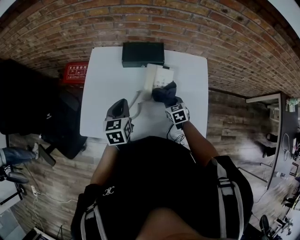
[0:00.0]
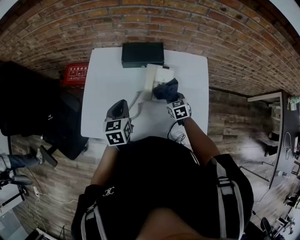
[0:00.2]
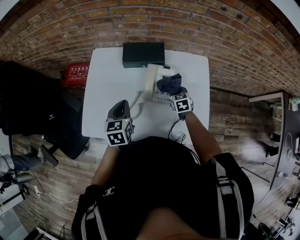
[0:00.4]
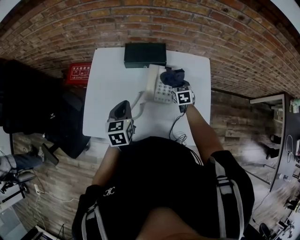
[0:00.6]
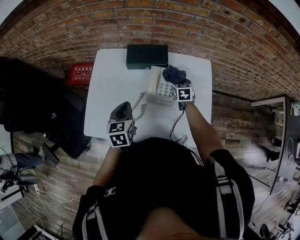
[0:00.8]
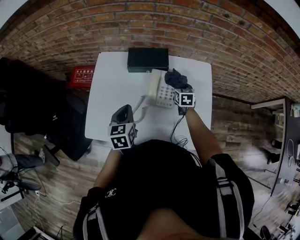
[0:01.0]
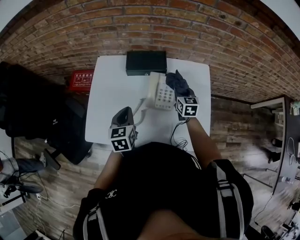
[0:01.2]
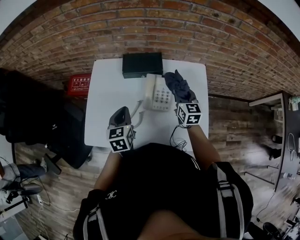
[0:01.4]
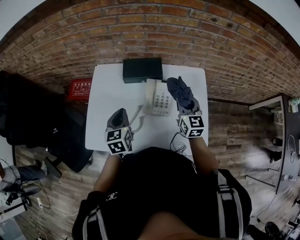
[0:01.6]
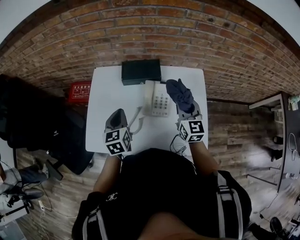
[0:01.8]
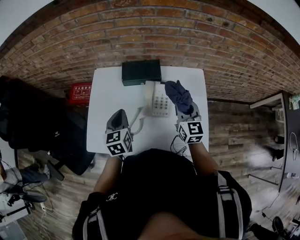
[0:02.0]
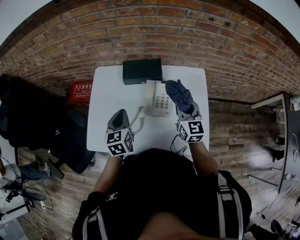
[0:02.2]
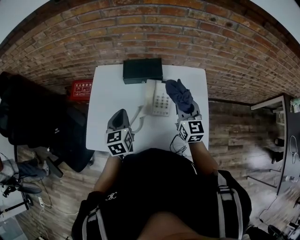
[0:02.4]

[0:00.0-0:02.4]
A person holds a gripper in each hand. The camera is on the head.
0:00.0 to 0:01.2: The right gripper heads upward and forward, covering roughly 15 cm, and turns by approximately 30 degrees.
0:01.2 to 0:02.4: The right gripper is displaced upward and backward by approximately 15 cm.

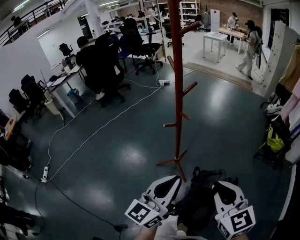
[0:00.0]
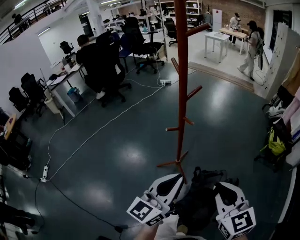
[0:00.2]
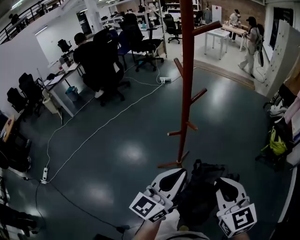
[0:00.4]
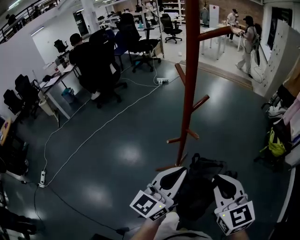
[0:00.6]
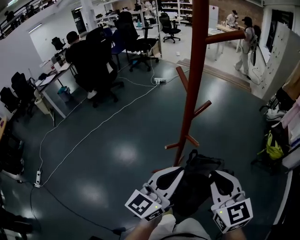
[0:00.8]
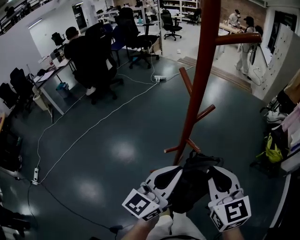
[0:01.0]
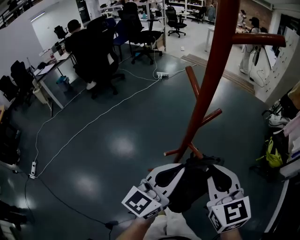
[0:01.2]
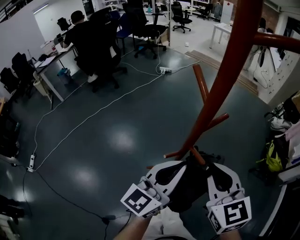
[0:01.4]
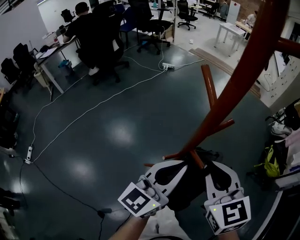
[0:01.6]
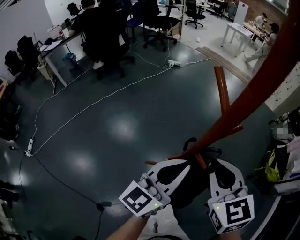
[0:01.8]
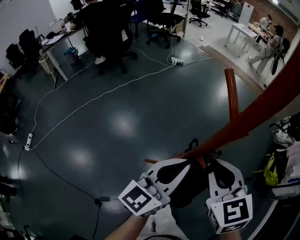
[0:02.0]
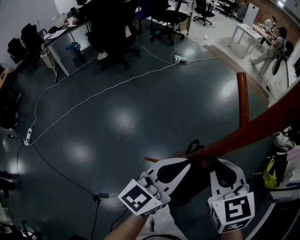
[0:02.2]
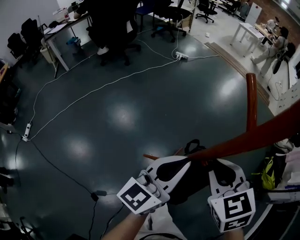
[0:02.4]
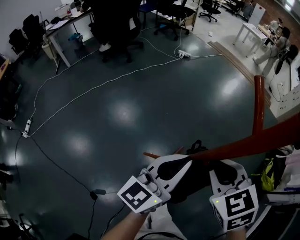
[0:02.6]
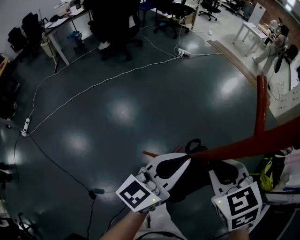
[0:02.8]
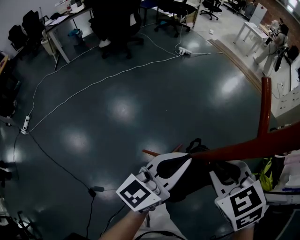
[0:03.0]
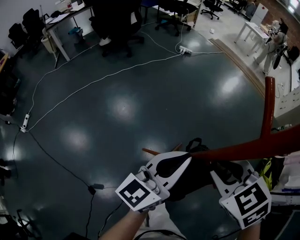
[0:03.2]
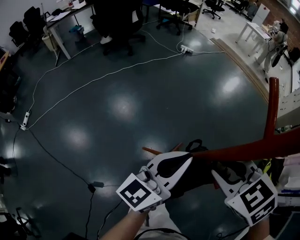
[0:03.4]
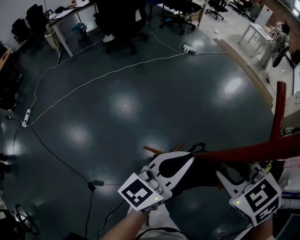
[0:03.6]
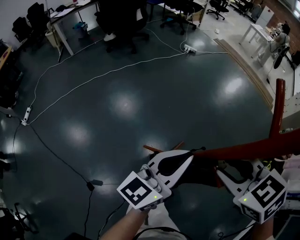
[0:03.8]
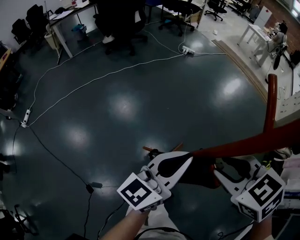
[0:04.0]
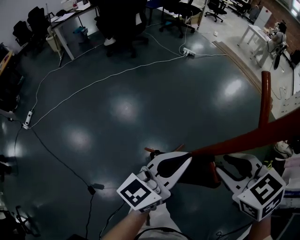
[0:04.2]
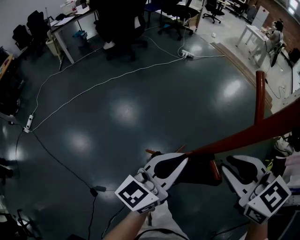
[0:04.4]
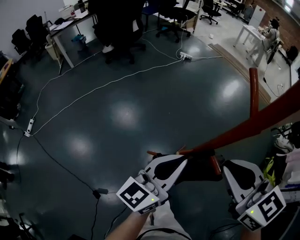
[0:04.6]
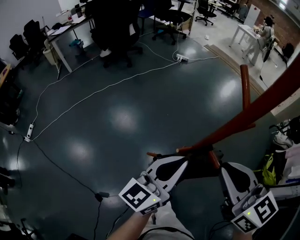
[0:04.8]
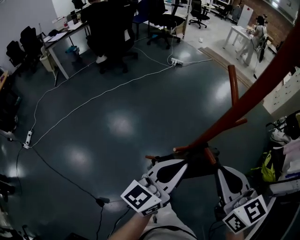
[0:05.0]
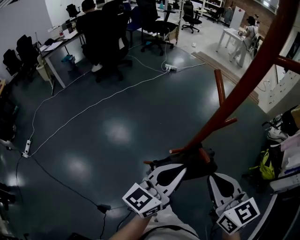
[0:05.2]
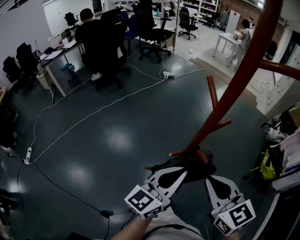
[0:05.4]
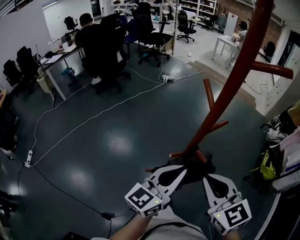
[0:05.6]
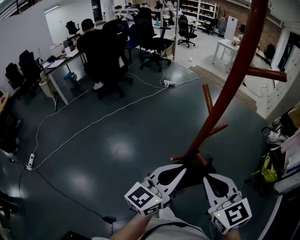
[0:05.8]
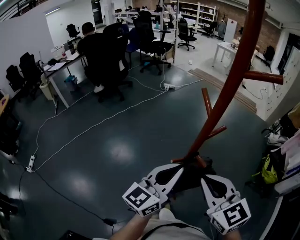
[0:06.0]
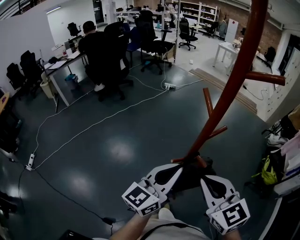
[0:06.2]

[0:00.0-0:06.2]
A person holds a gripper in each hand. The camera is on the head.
0:00.0 to 0:01.6: The left gripper moves forward, some 30 cm. The right gripper is displaced forward and to the left by some 35 cm.
0:01.6 to 0:03.2: The left gripper travels forward by roughly 5 cm. The right gripper is displaced downward by some 5 cm, and tilts its fingers approximately 30 degrees downward.
0:03.2 to 0:04.6: The right gripper heads upward, covering approximately 10 cm, and changes its angle by about 30 degrees.
0:04.6 to 0:06.2: The left gripper goes approximately 10 cm upward and backward, while the right gripper goes approximately 10 cm backward.

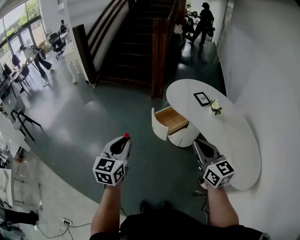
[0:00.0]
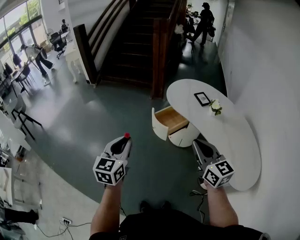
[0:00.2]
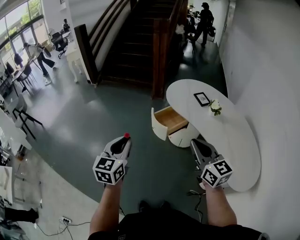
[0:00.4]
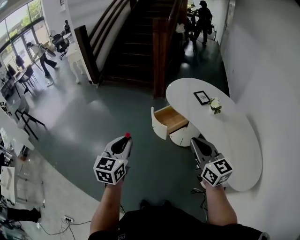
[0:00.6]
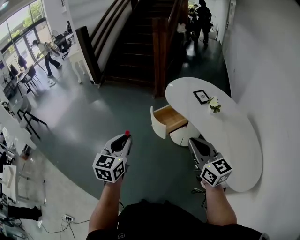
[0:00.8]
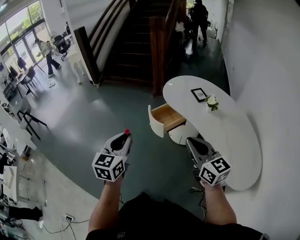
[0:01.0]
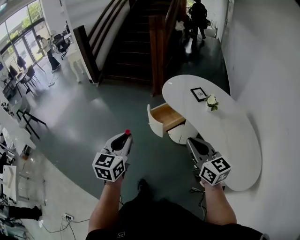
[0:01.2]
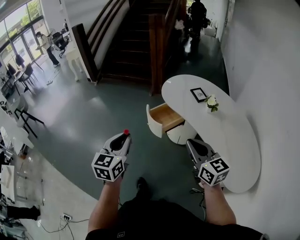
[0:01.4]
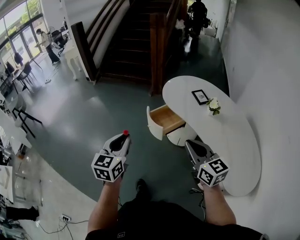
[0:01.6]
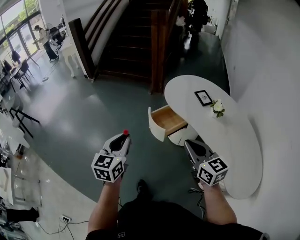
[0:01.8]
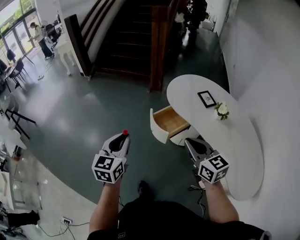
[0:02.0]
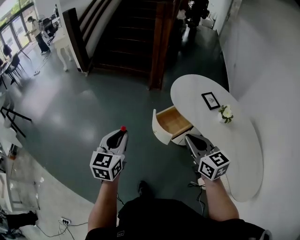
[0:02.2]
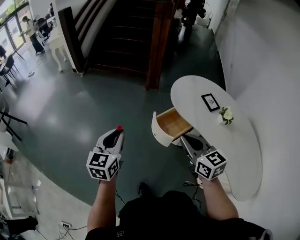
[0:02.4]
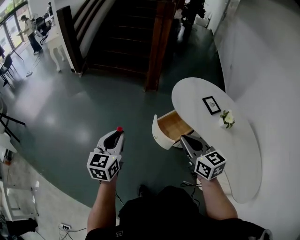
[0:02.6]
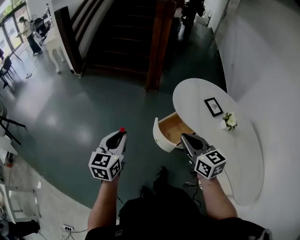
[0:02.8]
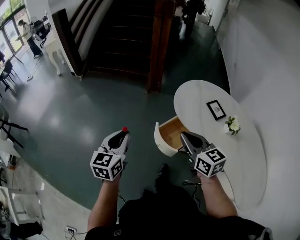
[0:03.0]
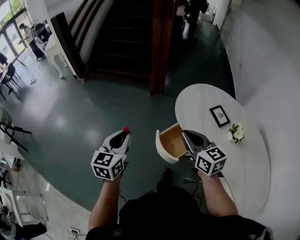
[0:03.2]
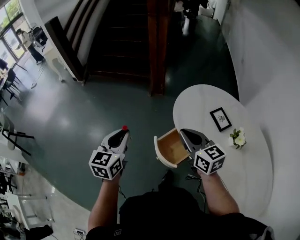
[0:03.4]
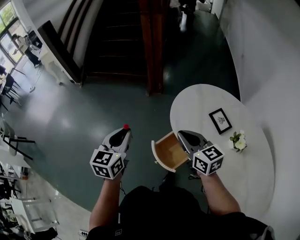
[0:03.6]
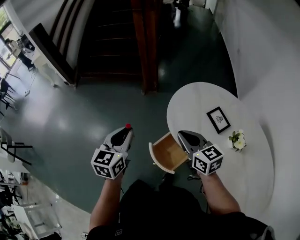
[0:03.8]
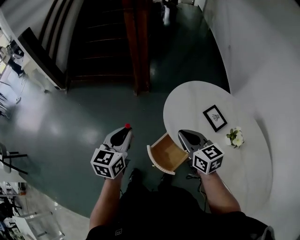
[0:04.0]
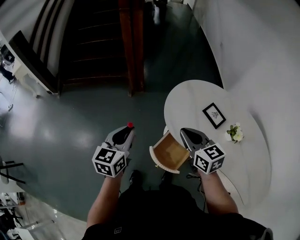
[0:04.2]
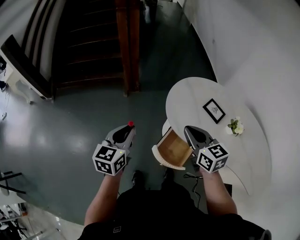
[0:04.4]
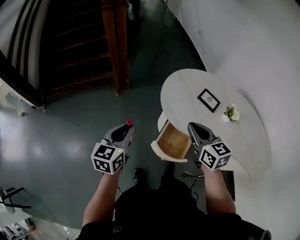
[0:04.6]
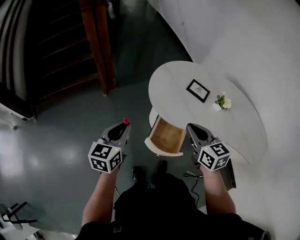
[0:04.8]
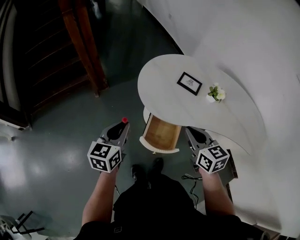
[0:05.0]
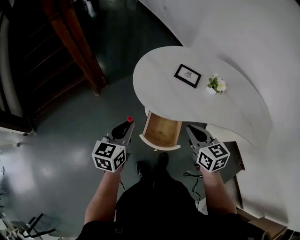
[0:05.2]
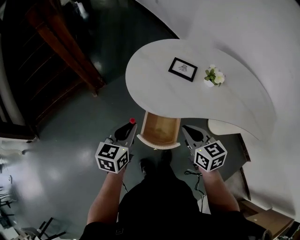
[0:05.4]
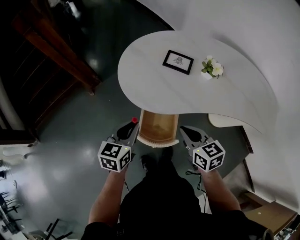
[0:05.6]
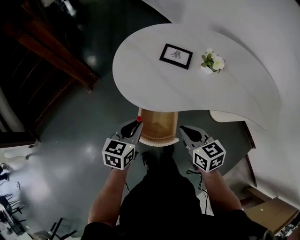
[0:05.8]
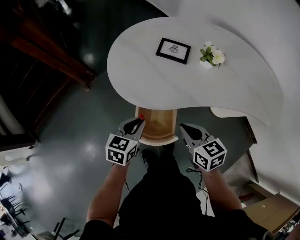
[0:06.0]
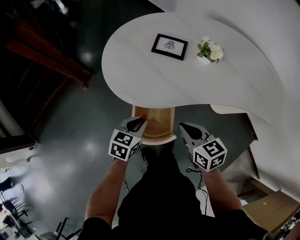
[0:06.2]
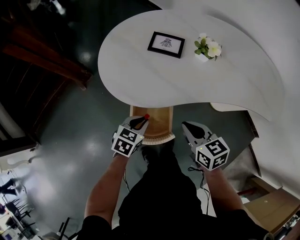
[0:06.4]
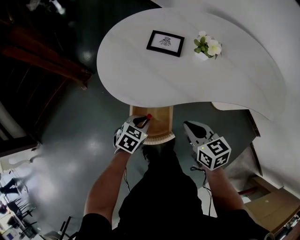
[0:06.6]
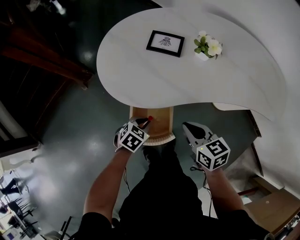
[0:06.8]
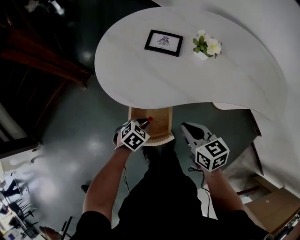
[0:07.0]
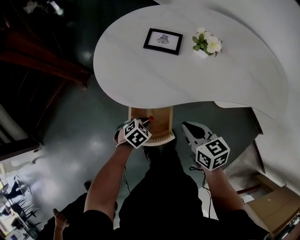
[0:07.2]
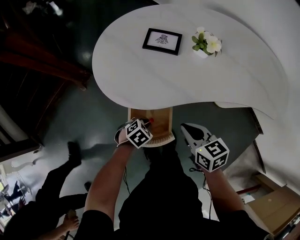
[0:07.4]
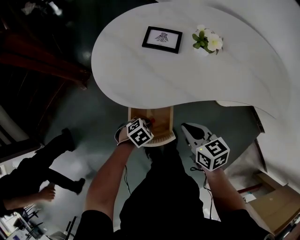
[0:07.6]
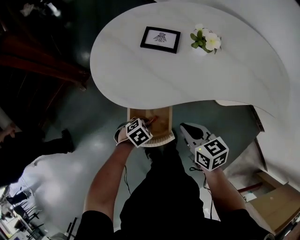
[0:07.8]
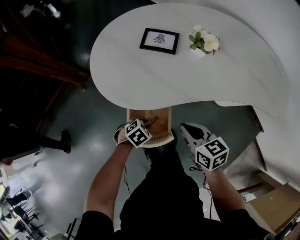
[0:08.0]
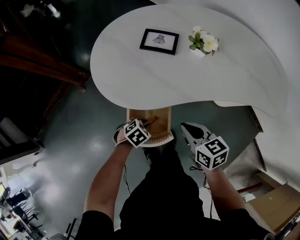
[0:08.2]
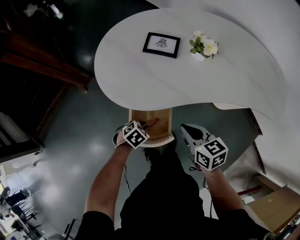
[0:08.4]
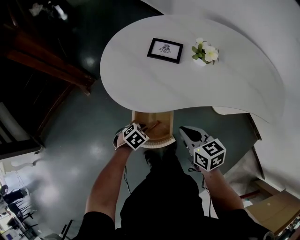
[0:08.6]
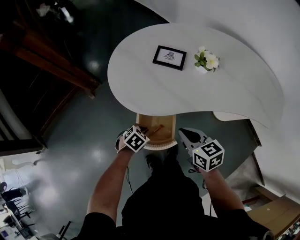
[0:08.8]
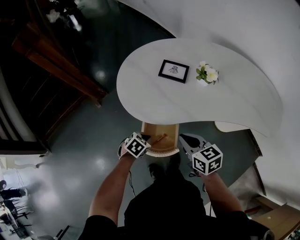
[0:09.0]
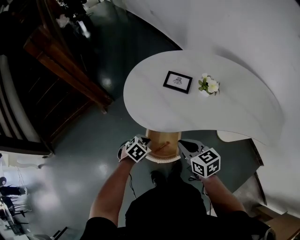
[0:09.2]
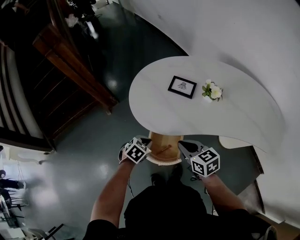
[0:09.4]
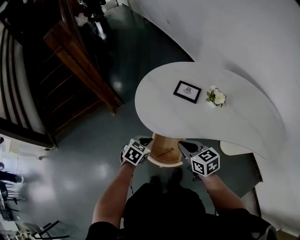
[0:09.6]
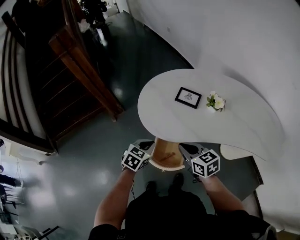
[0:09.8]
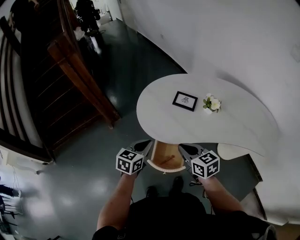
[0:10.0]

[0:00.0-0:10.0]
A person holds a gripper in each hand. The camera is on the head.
0:00.0 to 0:01.4: Both grippers move to the right, some 5 cm.
0:01.4 to 0:02.8: The two grippers go about 30 cm forward and to the left.
0:02.8 to 0:04.2: The left gripper shifts some 30 cm forward and to the right; the right gripper goes approximately 25 cm forward.
0:04.2 to 0:05.8: The left gripper moves some 25 cm, and rotates roughly 40 degrees. Meanwhile the right gripper moves roughly 20 cm, and turns by approximately 40 degrees.
0:05.8 to 0:07.2: The right gripper heads downward and to the right, covering some 10 cm. Meanwhile the left gripper shifts some 20 cm downward, and points its fingers approximately 30 degrees further downward.
0:07.2 to 0:08.6: The grippers make only small movements.
0:08.6 to 0:10.0: The right gripper heads upward, covering approximately 15 cm. The left gripper is displaced upward by some 30 cm, and points its fingers approximately 40 degrees further upward.

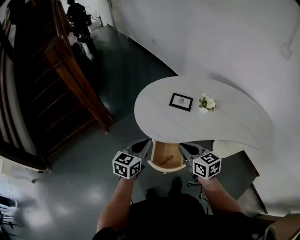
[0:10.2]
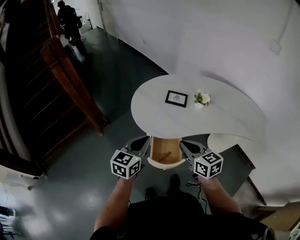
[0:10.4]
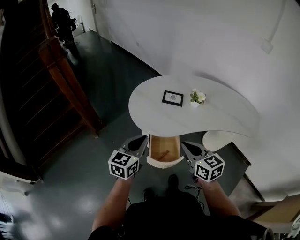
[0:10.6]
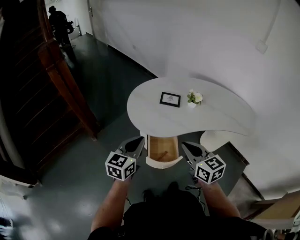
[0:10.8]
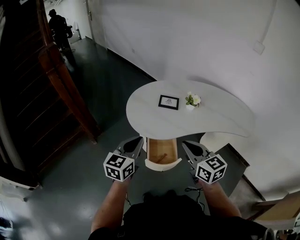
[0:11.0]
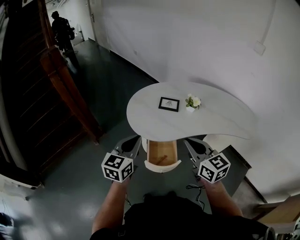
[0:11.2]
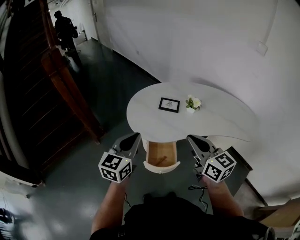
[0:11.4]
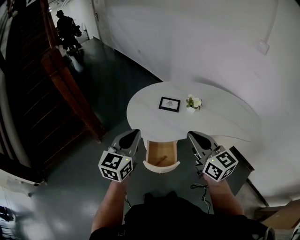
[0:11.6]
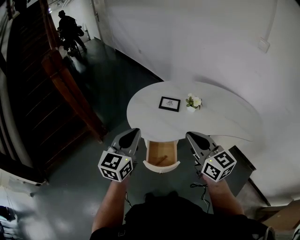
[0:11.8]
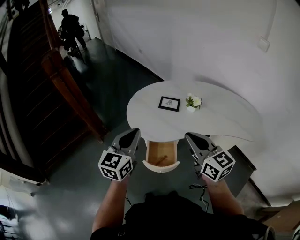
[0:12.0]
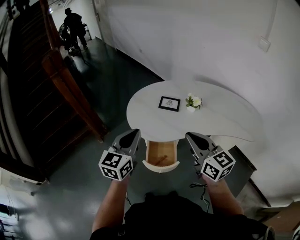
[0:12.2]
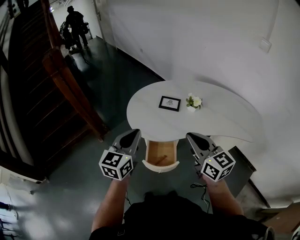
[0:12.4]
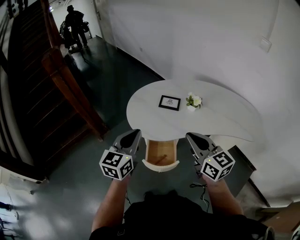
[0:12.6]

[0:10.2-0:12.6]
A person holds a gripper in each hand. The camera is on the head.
0:10.2 to 0:11.4: The right gripper goes some 15 cm upward and backward, and changes its angle by some 20 degrees. Meanwhile the left gripper goes approximately 15 cm upward.
0:11.4 to 0:12.6: The grippers make only small movements.

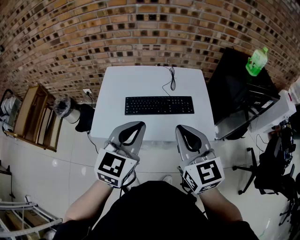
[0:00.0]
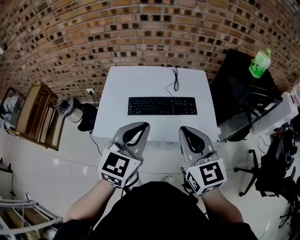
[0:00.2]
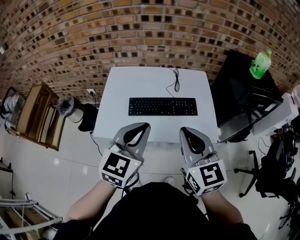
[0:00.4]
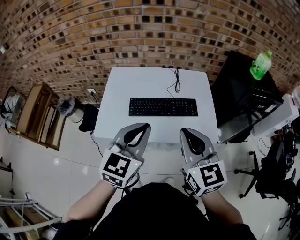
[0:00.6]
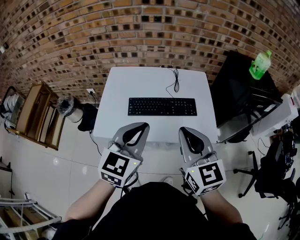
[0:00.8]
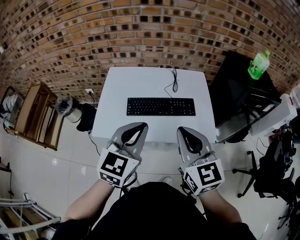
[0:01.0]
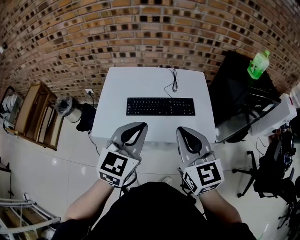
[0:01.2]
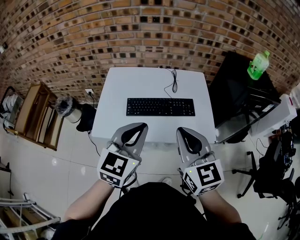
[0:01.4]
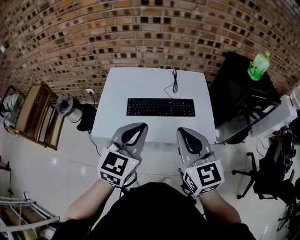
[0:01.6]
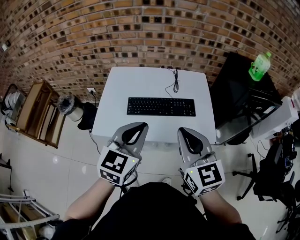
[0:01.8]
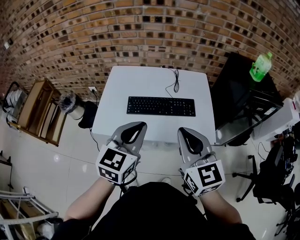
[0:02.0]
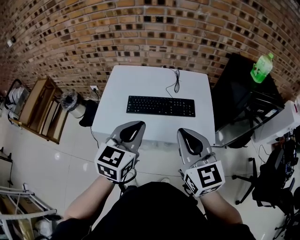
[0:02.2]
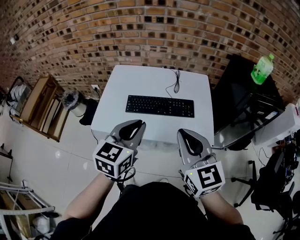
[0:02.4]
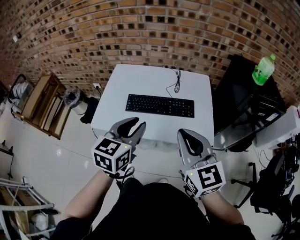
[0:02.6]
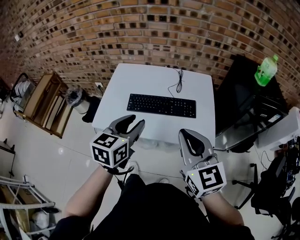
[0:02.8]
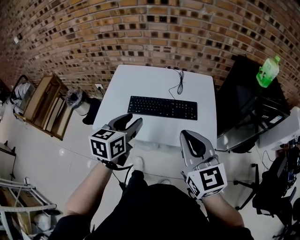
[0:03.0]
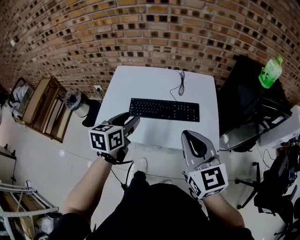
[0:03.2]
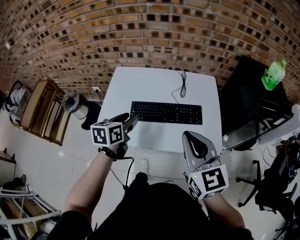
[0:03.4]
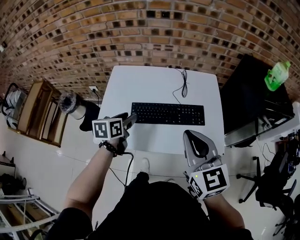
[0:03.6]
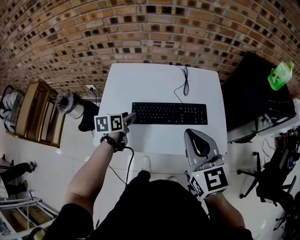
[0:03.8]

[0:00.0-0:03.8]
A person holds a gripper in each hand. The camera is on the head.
0:00.0 to 0:01.2: Both grippers stay about where they are.
0:01.2 to 0:02.6: The left gripper opens; the right gripper shifts some 5 cm to the right.
0:02.6 to 0:03.8: The right gripper is displaced forward and to the left by some 15 cm, while the left gripper moves forward, downward and to the left, roughly 30 cm, and rotates approximately 40 degrees.
